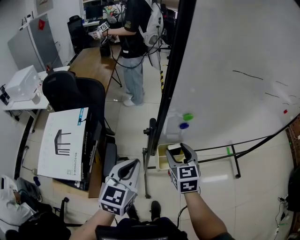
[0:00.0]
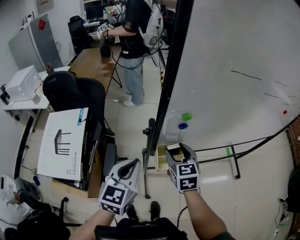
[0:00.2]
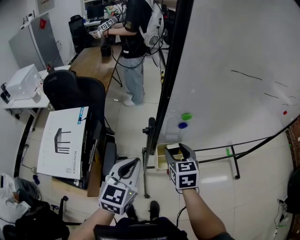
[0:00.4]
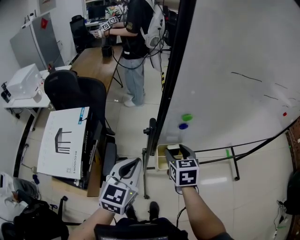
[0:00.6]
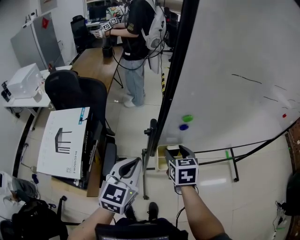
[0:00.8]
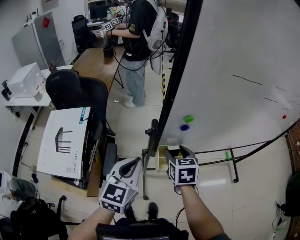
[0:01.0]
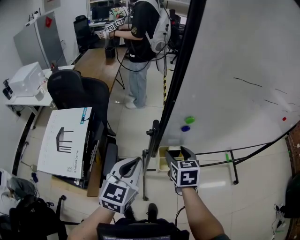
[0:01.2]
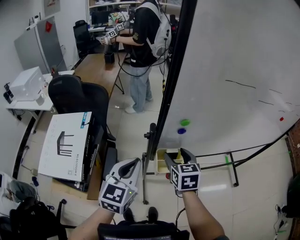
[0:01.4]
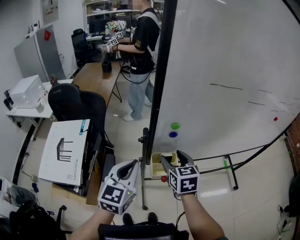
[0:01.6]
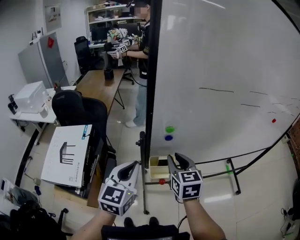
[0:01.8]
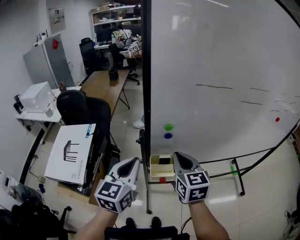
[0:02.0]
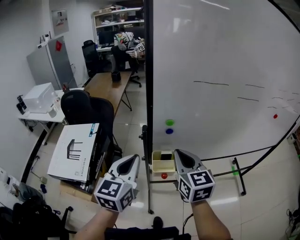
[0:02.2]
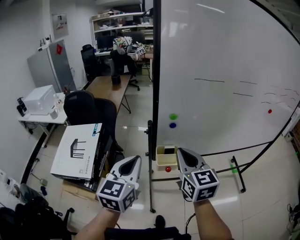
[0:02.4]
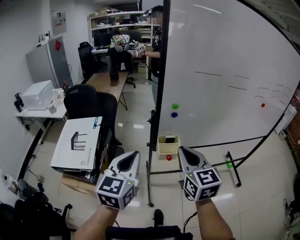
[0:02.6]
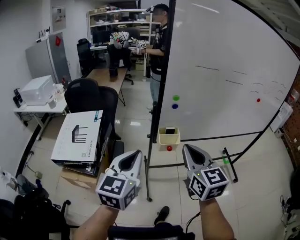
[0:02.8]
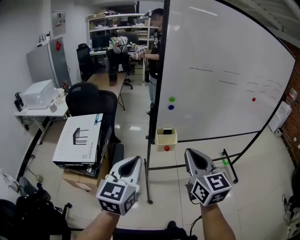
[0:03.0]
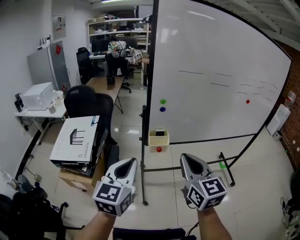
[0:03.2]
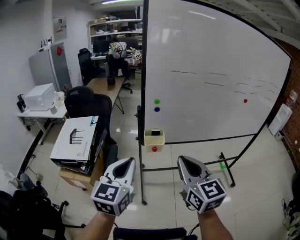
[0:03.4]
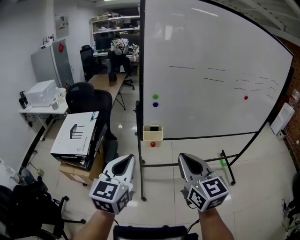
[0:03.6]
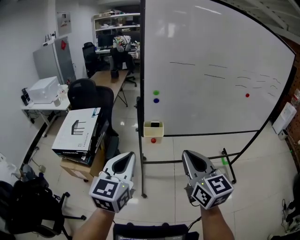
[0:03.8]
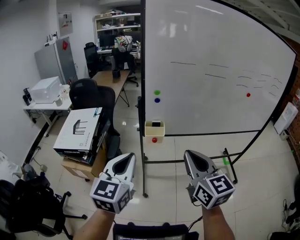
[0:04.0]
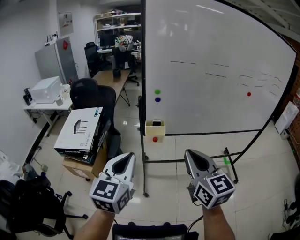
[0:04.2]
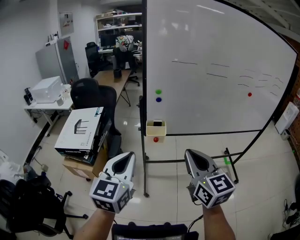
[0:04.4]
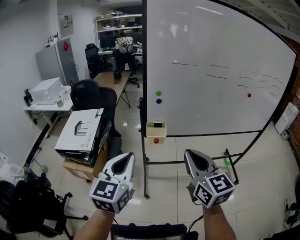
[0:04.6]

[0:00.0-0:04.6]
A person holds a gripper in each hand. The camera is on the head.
0:00.0 to 0:01.6: The left gripper heads upward, covering about 5 cm, while the right gripper changes place by roughly 5 cm.
0:01.6 to 0:03.0: The left gripper is displaced backward by roughly 25 cm, while the right gripper shifts some 35 cm backward and upward, swivels some 20 degrees, and closes up.
0:03.0 to 0:04.6: The grippers both shift to the right and backward by approximately 10 cm.

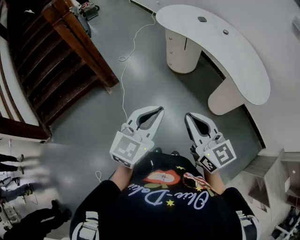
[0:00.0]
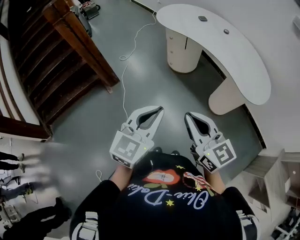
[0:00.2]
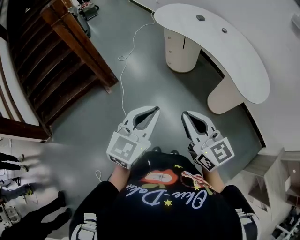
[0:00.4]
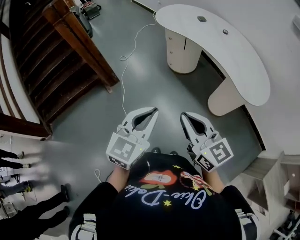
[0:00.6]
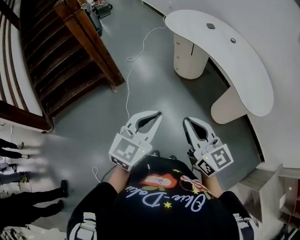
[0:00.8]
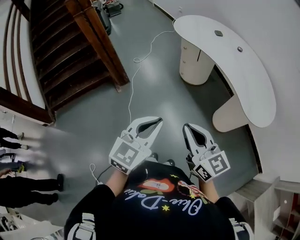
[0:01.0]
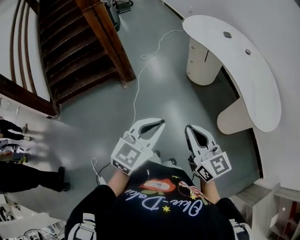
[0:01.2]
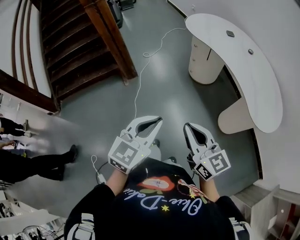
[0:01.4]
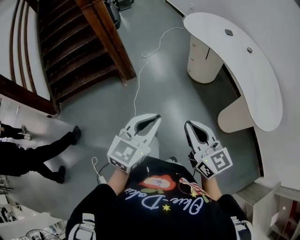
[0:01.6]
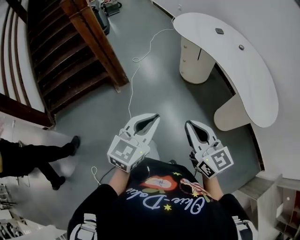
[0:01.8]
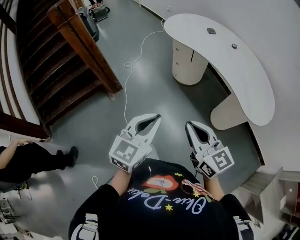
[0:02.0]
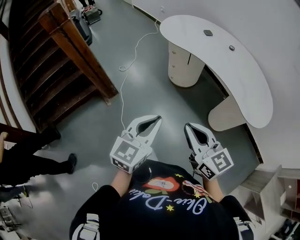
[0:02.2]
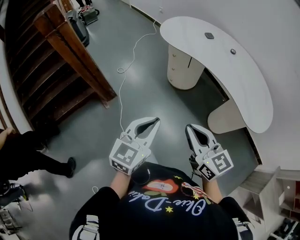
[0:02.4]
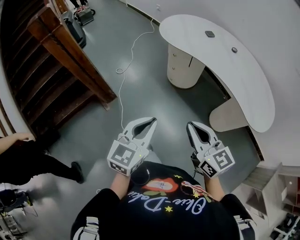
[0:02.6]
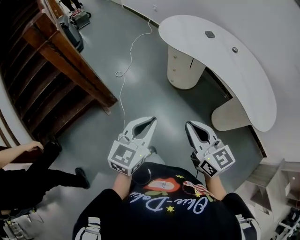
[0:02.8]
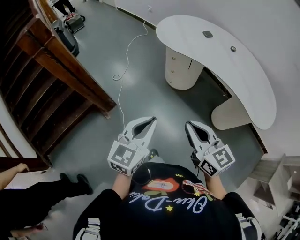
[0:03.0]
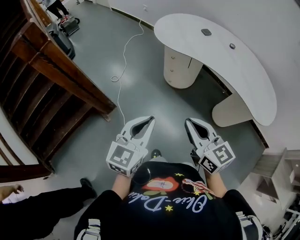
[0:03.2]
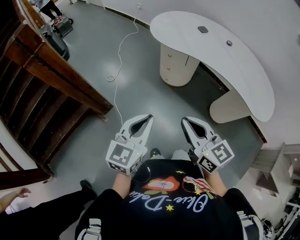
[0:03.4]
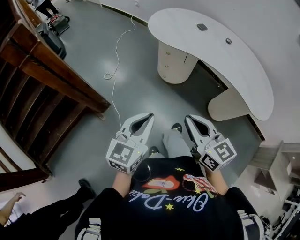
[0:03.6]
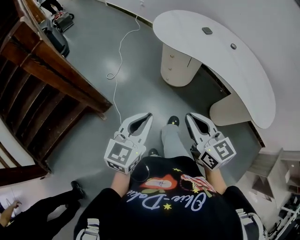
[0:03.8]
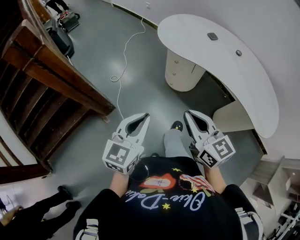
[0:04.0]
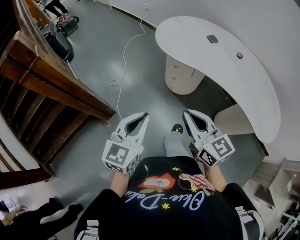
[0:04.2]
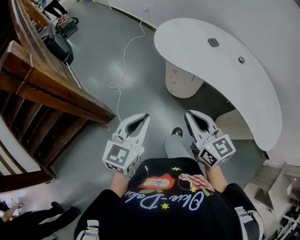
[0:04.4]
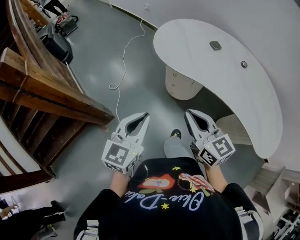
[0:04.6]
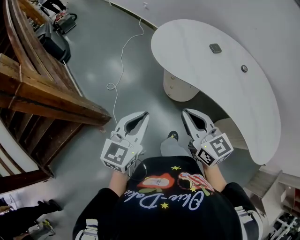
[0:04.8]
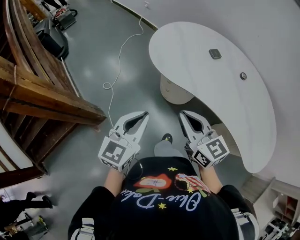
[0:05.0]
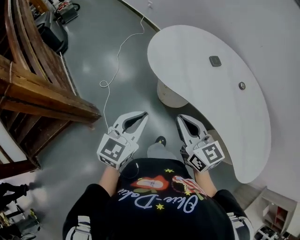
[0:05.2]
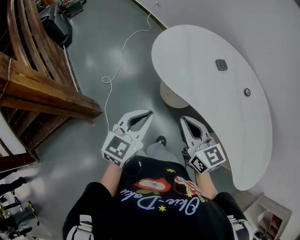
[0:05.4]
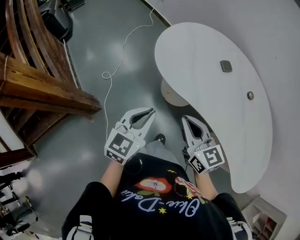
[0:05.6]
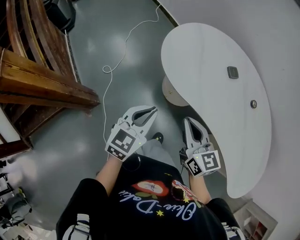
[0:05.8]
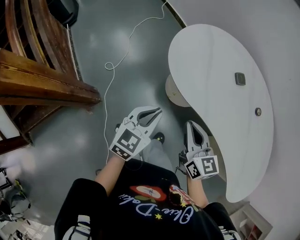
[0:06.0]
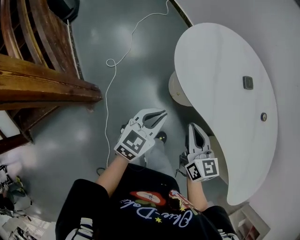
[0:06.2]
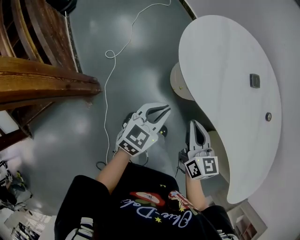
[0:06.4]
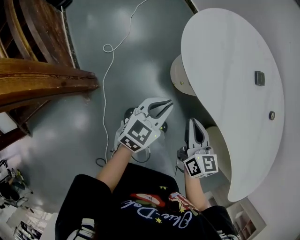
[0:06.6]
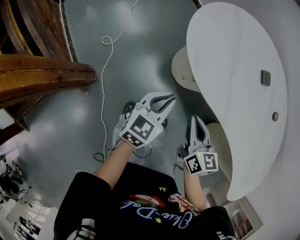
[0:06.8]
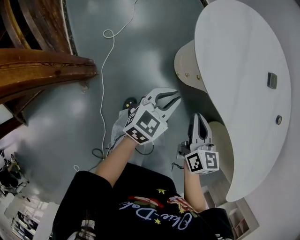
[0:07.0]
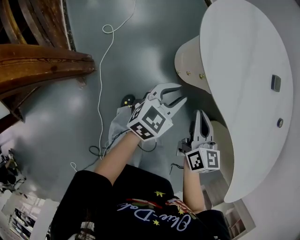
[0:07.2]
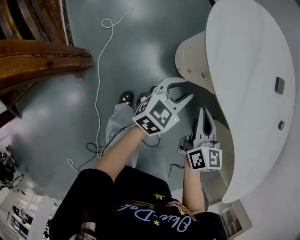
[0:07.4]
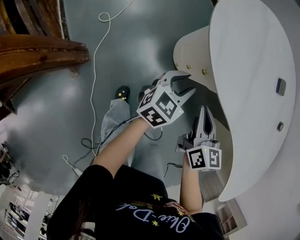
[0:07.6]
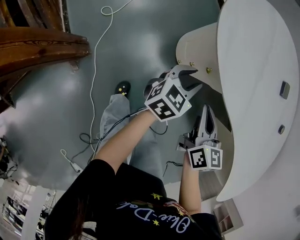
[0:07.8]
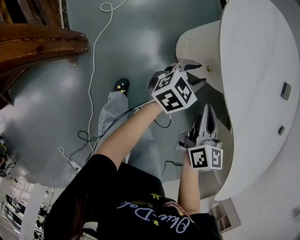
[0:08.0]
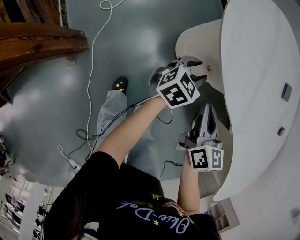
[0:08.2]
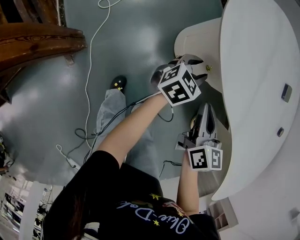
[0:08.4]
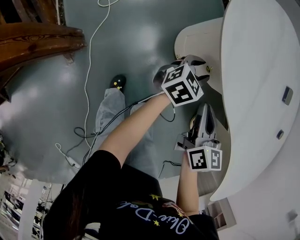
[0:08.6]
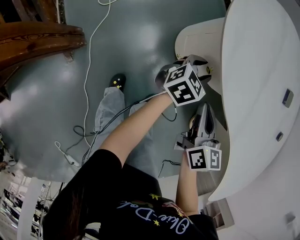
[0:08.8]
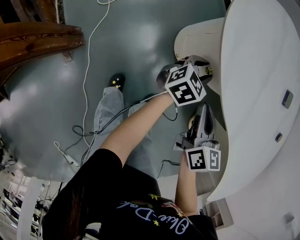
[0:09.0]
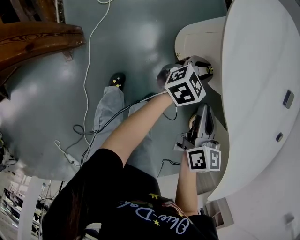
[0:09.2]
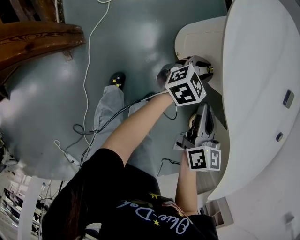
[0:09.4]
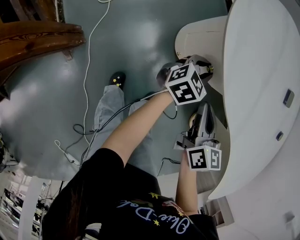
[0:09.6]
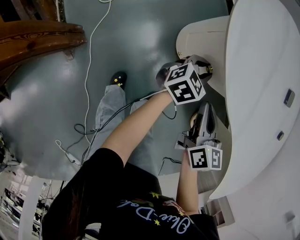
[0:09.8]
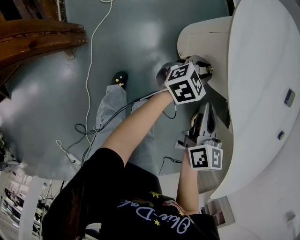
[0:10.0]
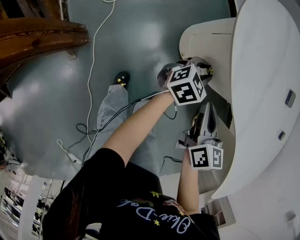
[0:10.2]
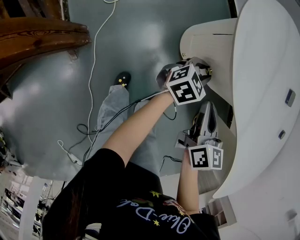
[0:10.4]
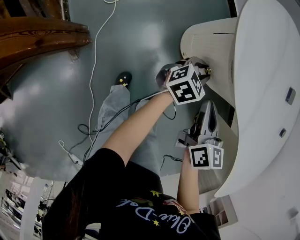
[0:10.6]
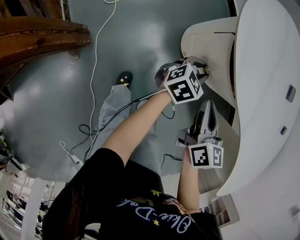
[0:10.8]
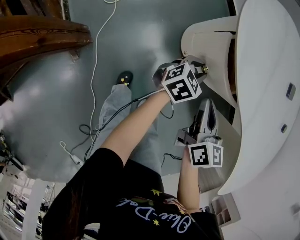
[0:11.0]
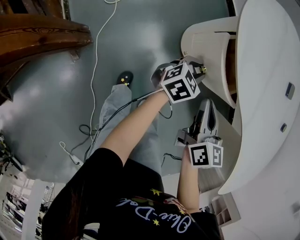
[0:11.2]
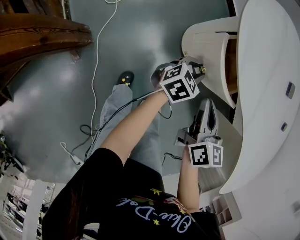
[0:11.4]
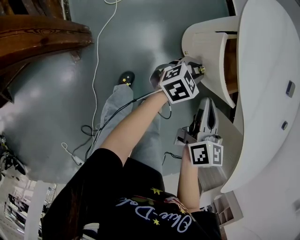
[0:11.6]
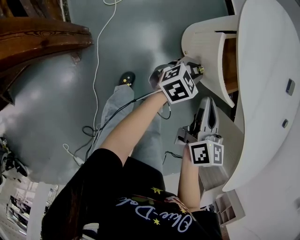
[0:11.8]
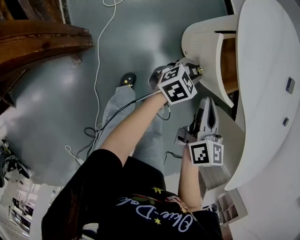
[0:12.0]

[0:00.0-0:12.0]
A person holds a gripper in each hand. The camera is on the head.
0:00.0 to 0:01.6: There are only small adjustments of the grippers.
0:01.6 to 0:03.0: Both grippers travel together forward and to the left, approximately 25 cm.
0:03.0 to 0:04.4: The two grippers go some 20 cm forward.
0:04.4 to 0:06.0: Both grippers travel together forward and downward, some 25 cm.
0:06.0 to 0:07.6: The right gripper travels downward by some 20 cm. Meanwhile the left gripper heads downward and forward, covering roughly 25 cm, and opens.
0:07.6 to 0:09.0: The left gripper shifts about 10 cm forward and downward.
0:09.0 to 0:10.4: There are only small adjustments of the grippers.
0:10.4 to 0:12.0: The left gripper shifts approximately 5 cm backward. Meanwhile the right gripper shifts by some 5 cm.

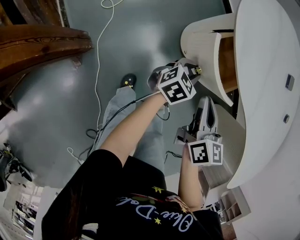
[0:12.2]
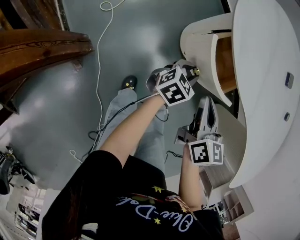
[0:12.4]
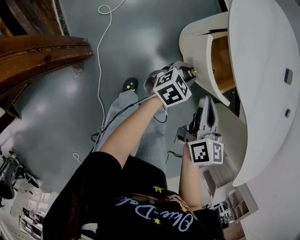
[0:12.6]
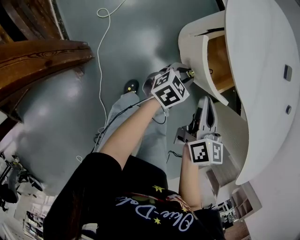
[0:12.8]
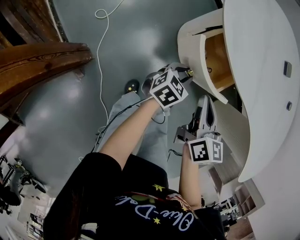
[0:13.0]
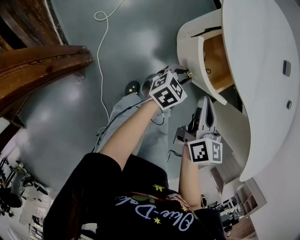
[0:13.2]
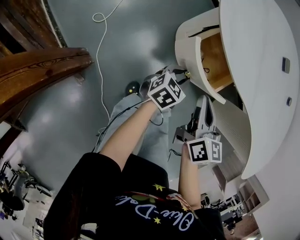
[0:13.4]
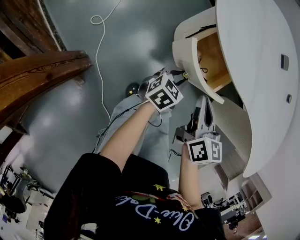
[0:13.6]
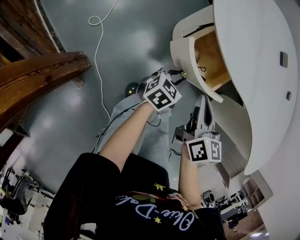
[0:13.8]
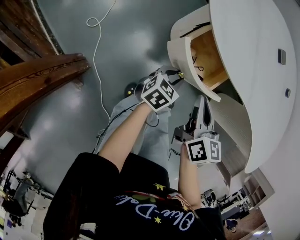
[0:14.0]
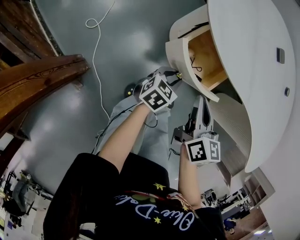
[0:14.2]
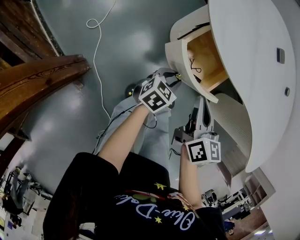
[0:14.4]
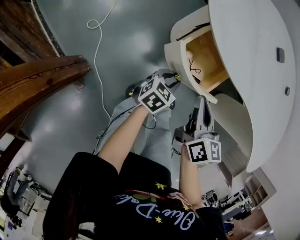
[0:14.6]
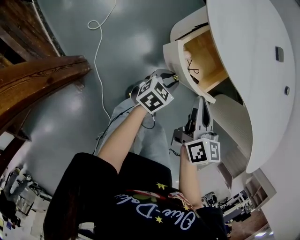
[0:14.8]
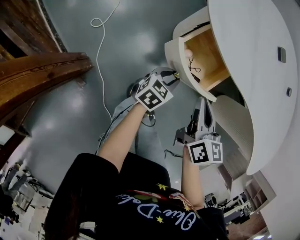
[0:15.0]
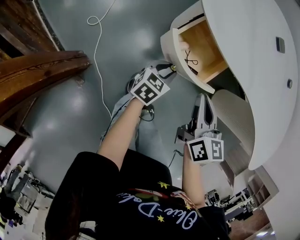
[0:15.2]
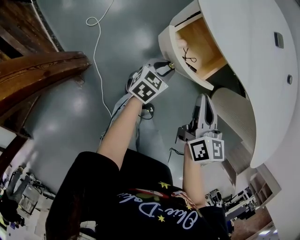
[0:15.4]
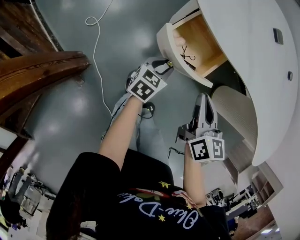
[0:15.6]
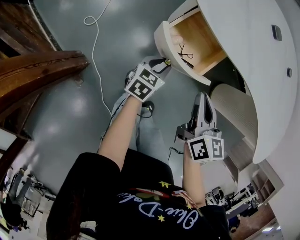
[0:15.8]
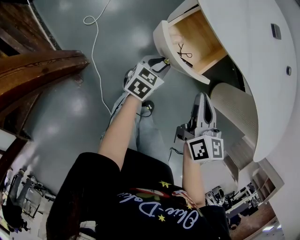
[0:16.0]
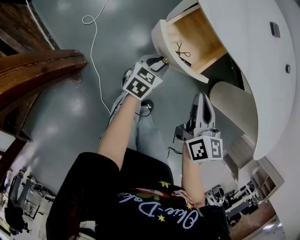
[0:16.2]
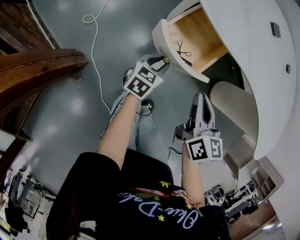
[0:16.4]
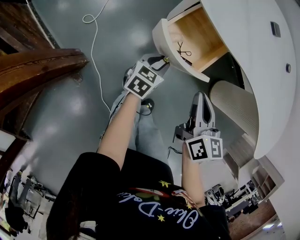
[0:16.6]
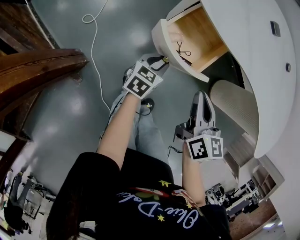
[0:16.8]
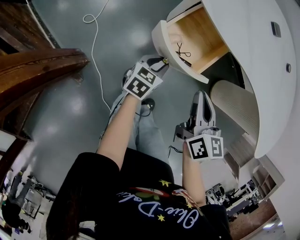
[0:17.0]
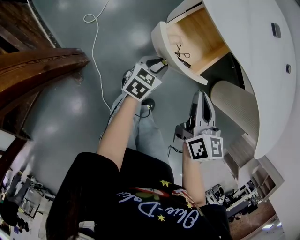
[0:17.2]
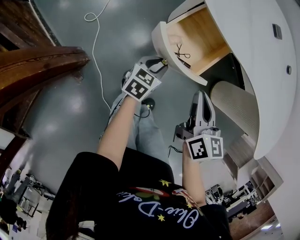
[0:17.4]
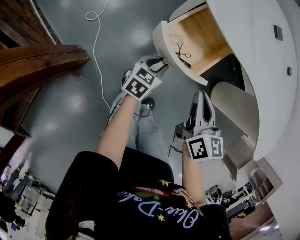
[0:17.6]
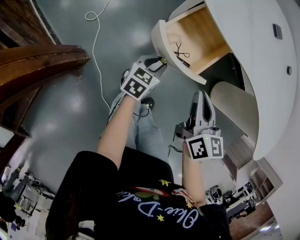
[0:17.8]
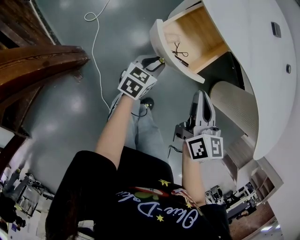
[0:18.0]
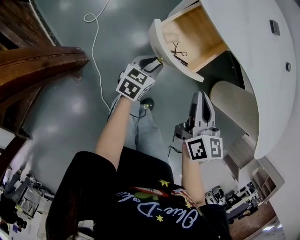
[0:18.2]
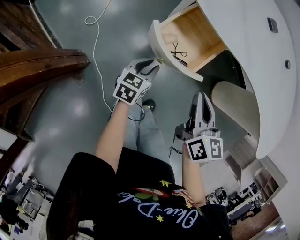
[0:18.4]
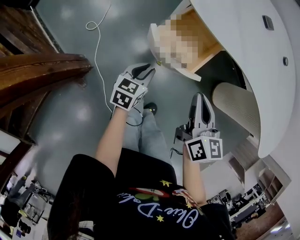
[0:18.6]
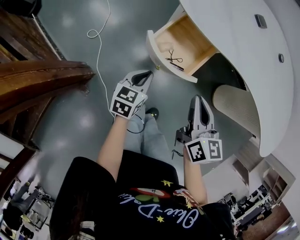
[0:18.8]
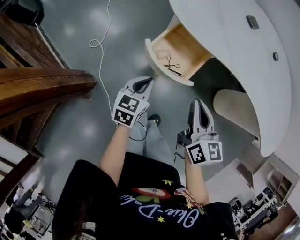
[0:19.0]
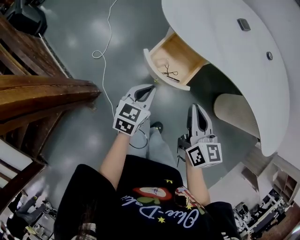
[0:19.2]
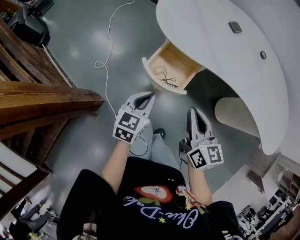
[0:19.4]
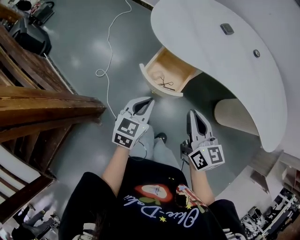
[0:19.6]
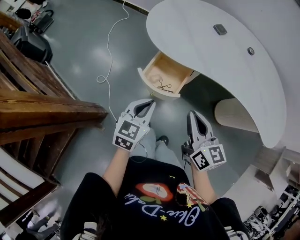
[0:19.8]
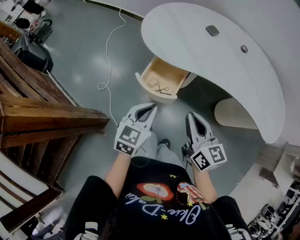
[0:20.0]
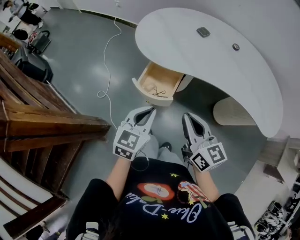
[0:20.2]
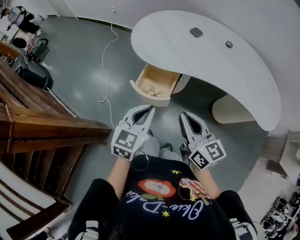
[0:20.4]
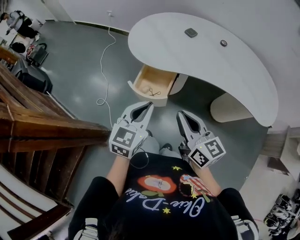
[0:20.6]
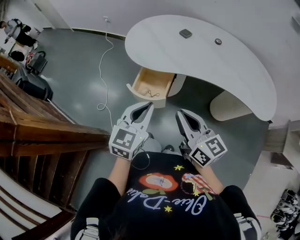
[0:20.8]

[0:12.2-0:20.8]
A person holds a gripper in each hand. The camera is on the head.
0:12.2 to 0:13.6: The grippers stay close to where they were, moving slightly.
0:13.6 to 0:15.0: The grippers move only a little.
0:15.0 to 0:16.6: The right gripper heads backward, covering roughly 5 cm.
0:16.6 to 0:18.0: The grippers make only small movements.
0:18.0 to 0:19.4: The left gripper heads upward, covering approximately 20 cm, and closes its fingers. Meanwhile the right gripper heads upward, covering some 10 cm.
0:19.4 to 0:20.8: The right gripper goes approximately 15 cm upward and backward; the left gripper moves upward, about 20 cm, and turns by roughly 20 degrees.
